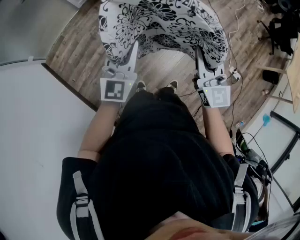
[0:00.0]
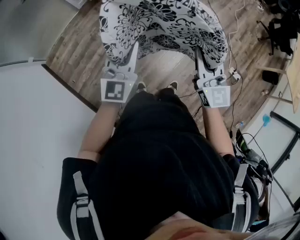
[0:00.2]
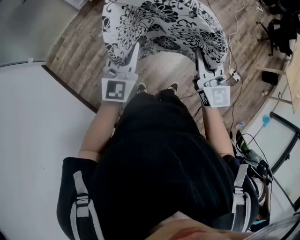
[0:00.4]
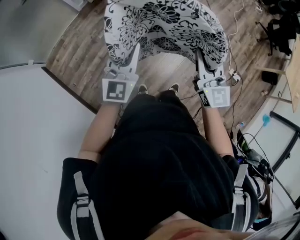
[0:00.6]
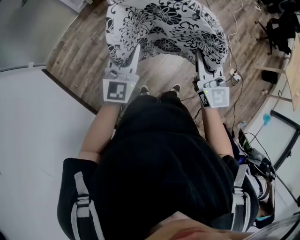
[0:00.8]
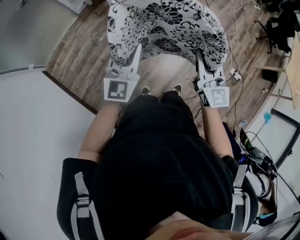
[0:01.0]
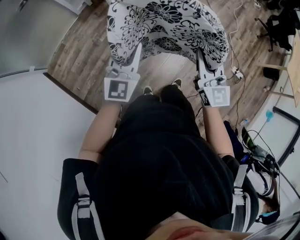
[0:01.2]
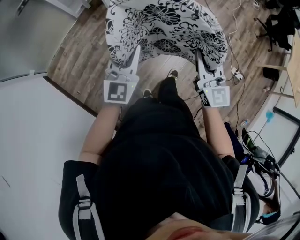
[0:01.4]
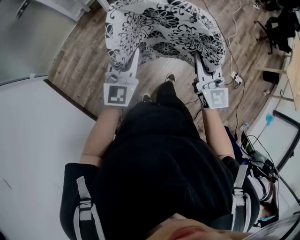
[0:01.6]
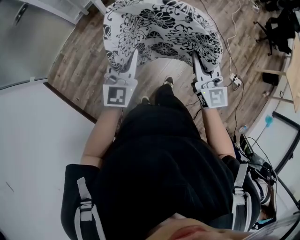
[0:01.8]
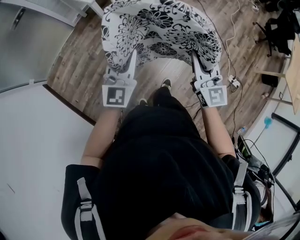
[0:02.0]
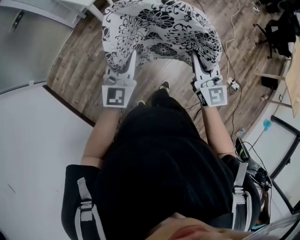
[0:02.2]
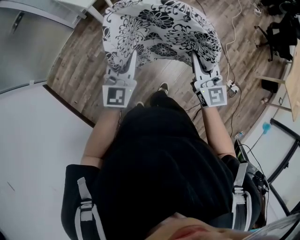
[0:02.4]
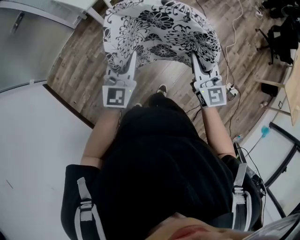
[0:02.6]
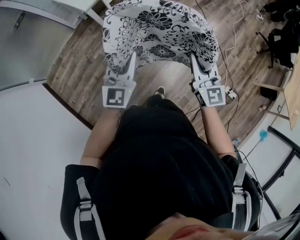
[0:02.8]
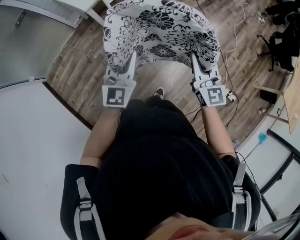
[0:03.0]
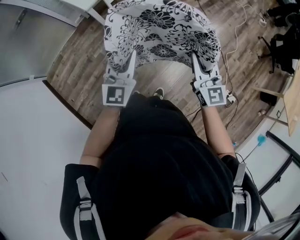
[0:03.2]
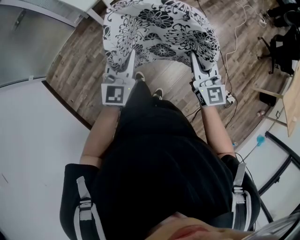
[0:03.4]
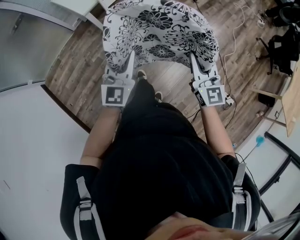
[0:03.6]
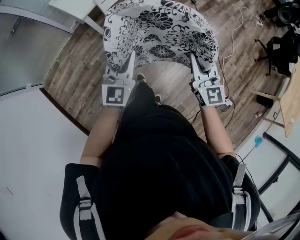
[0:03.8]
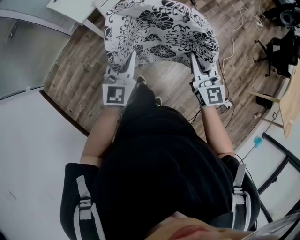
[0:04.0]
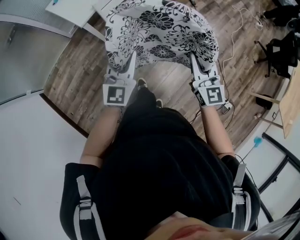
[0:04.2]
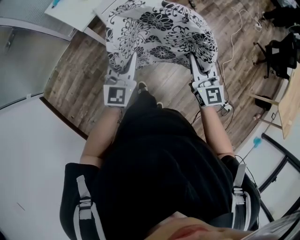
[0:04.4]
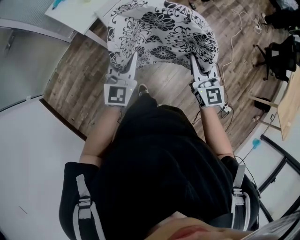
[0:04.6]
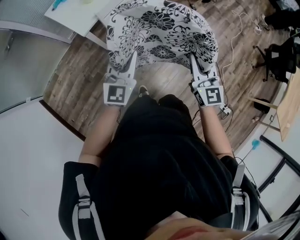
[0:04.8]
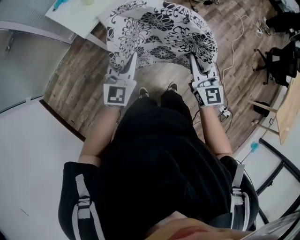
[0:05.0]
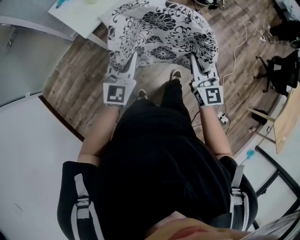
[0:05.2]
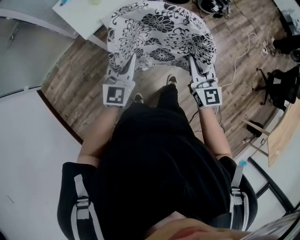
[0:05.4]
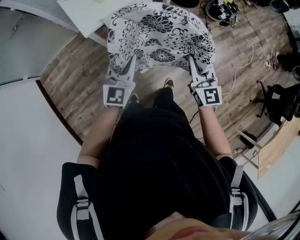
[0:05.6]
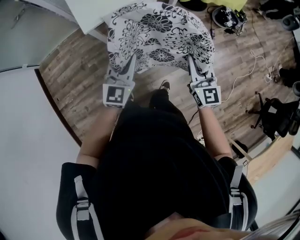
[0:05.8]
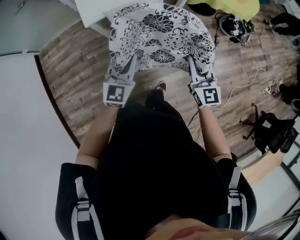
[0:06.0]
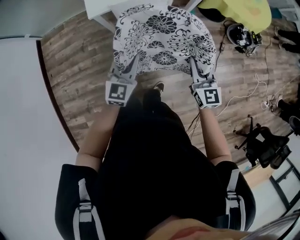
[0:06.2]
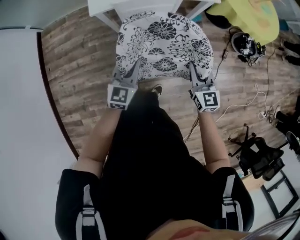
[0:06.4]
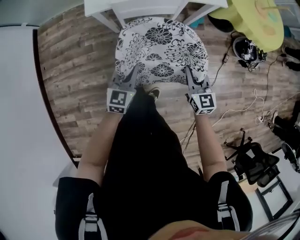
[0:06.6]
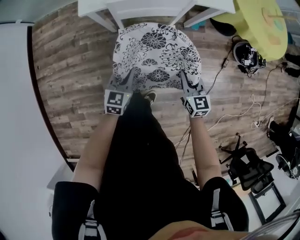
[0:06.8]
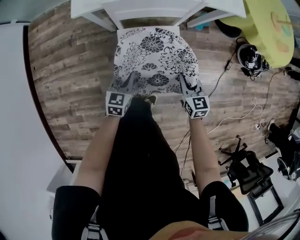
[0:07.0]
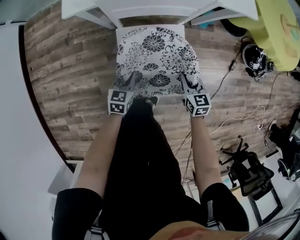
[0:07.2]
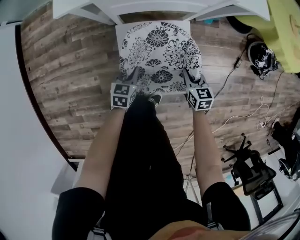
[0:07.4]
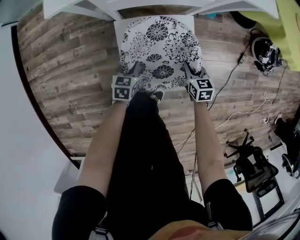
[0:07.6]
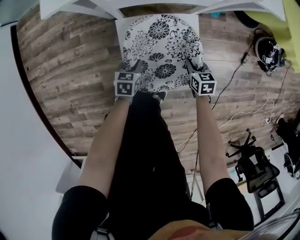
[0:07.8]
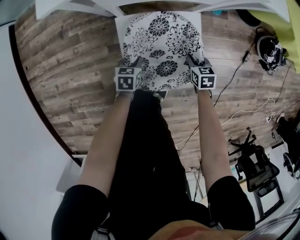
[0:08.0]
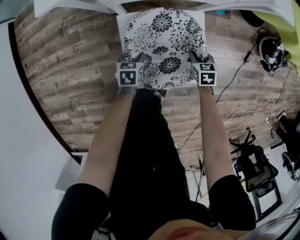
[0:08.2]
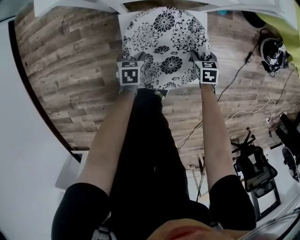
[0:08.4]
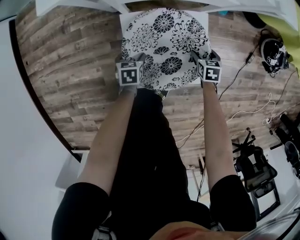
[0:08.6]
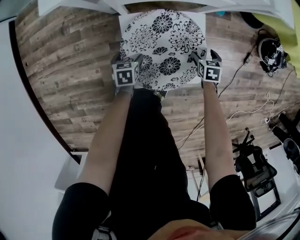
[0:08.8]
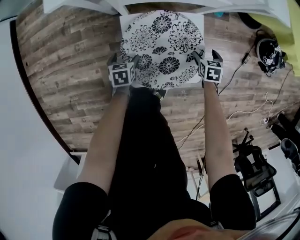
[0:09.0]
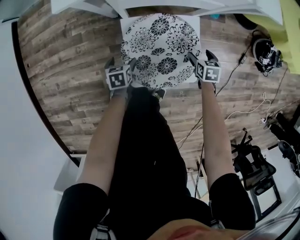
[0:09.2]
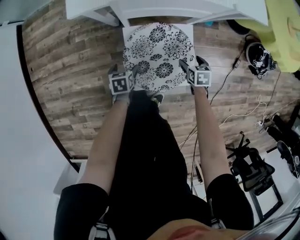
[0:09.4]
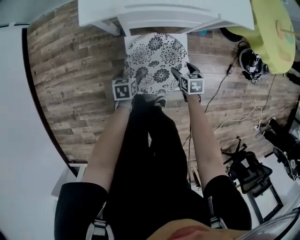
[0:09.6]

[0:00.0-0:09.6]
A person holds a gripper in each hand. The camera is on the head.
0:00.0 to 0:03.2: The grippers move only a little.
0:03.2 to 0:04.8: Neither gripper changes place.
0:04.8 to 0:06.4: Both grippers travel together downward, roughly 10 cm.
0:06.4 to 0:08.0: The two grippers go approximately 50 cm downward. The right gripper points its fingers about 40 degrees further downward. The left gripper tilts its fingers approximately 40 degrees downward.
0:08.0 to 0:09.6: The grippers both shift upward by roughly 15 cm. The left gripper opens up. Meanwhile the right gripper opens its fingers.

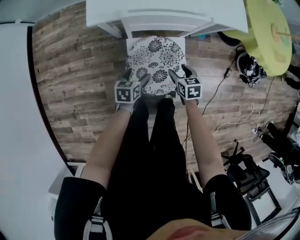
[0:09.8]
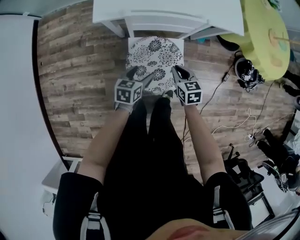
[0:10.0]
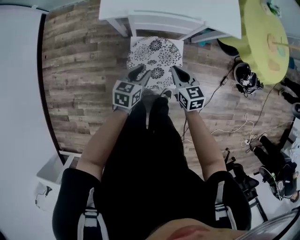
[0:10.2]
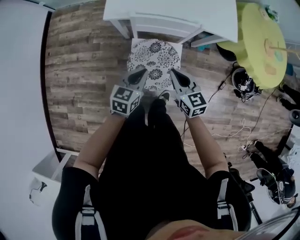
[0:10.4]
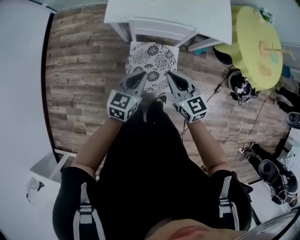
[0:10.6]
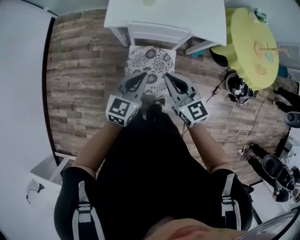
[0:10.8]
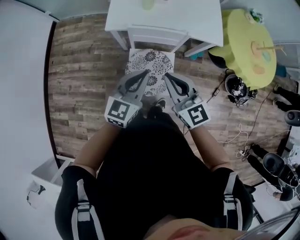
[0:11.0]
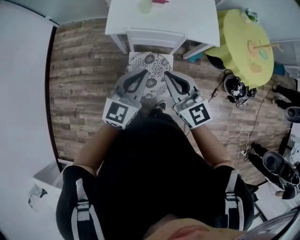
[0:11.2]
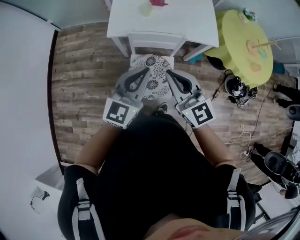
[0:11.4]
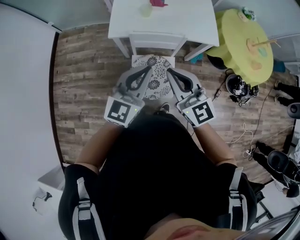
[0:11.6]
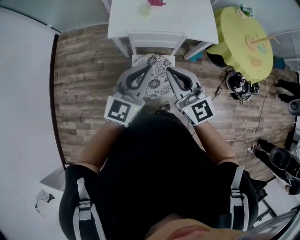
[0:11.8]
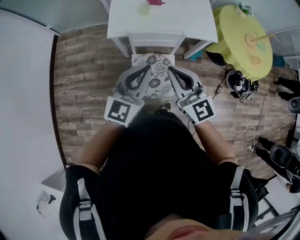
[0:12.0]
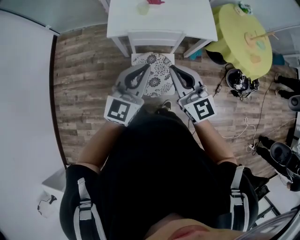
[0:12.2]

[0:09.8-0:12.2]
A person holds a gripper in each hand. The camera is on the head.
0:09.8 to 0:11.0: Both grippers move upward, some 40 cm. The right gripper angles its fingers upward, by about 50 degrees, and closes its fingers; the left gripper angles its fingers upward, by roughly 30 degrees, and closes up.
0:11.0 to 0:12.2: The left gripper is displaced upward by approximately 10 cm, while the right gripper heads upward, covering approximately 5 cm.

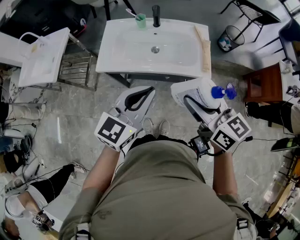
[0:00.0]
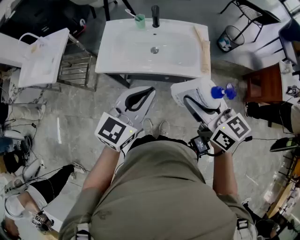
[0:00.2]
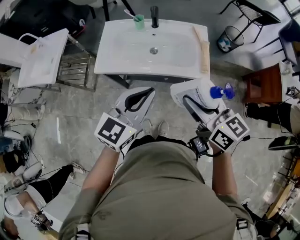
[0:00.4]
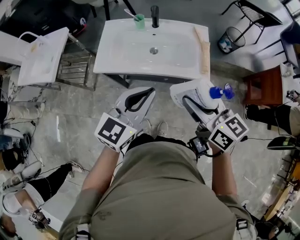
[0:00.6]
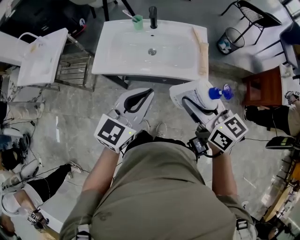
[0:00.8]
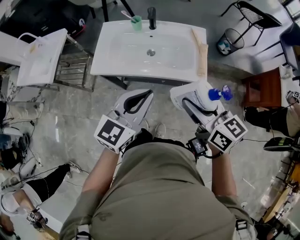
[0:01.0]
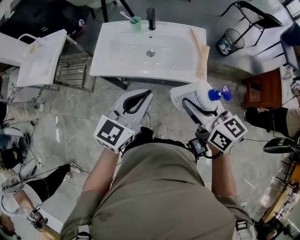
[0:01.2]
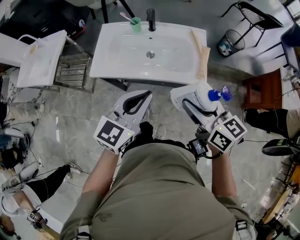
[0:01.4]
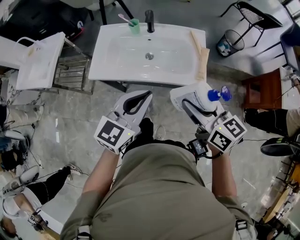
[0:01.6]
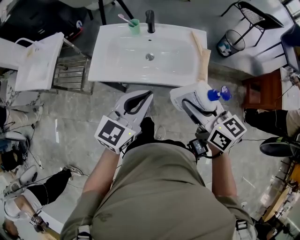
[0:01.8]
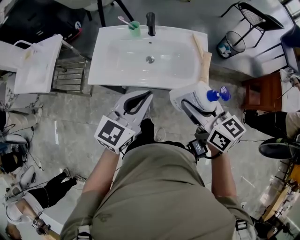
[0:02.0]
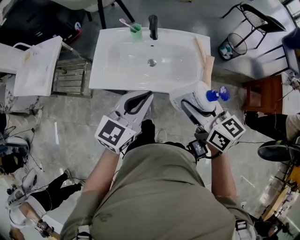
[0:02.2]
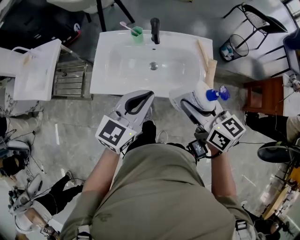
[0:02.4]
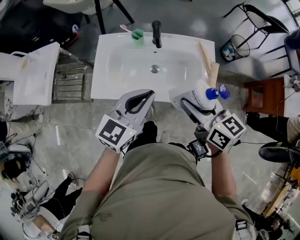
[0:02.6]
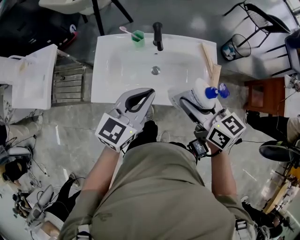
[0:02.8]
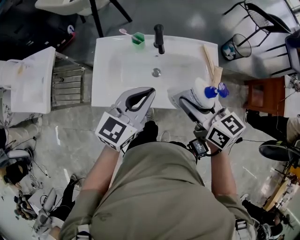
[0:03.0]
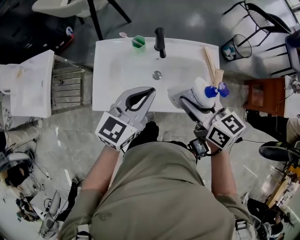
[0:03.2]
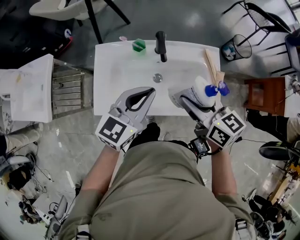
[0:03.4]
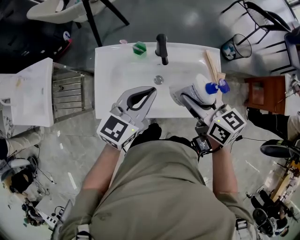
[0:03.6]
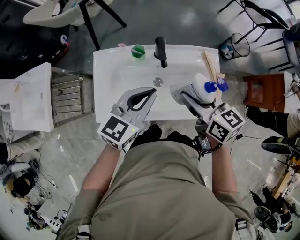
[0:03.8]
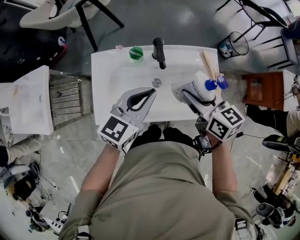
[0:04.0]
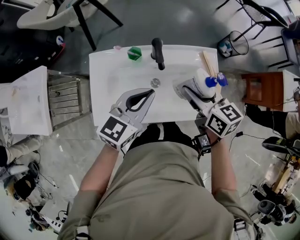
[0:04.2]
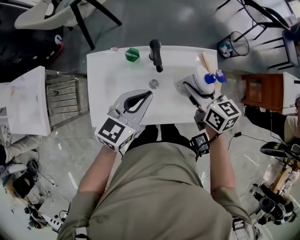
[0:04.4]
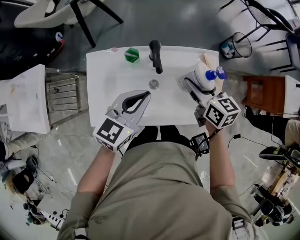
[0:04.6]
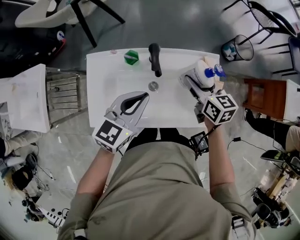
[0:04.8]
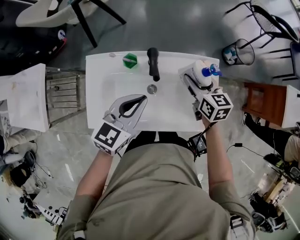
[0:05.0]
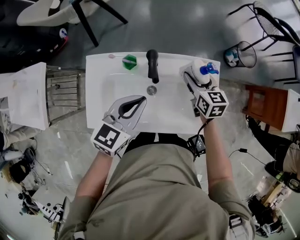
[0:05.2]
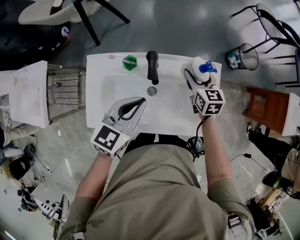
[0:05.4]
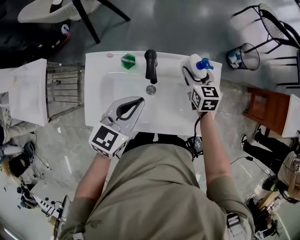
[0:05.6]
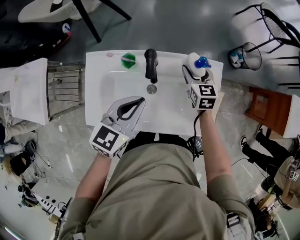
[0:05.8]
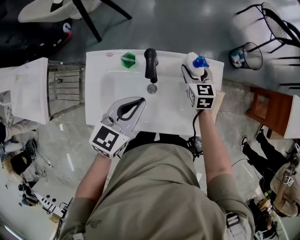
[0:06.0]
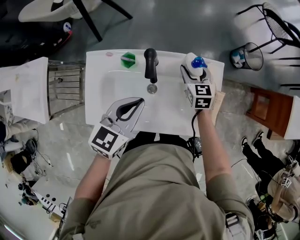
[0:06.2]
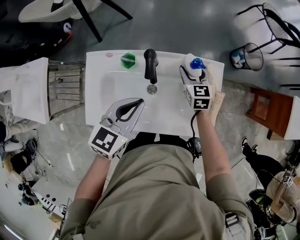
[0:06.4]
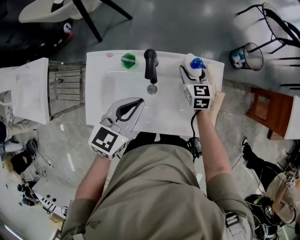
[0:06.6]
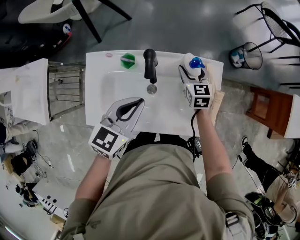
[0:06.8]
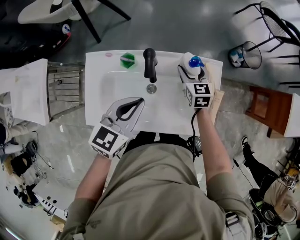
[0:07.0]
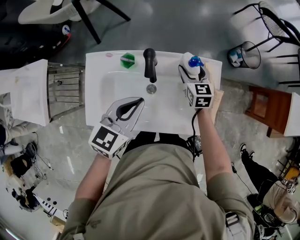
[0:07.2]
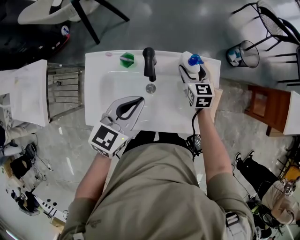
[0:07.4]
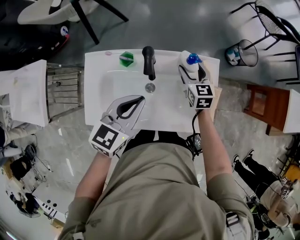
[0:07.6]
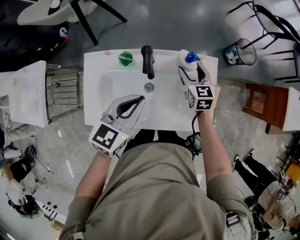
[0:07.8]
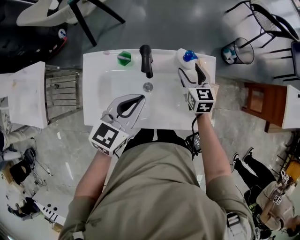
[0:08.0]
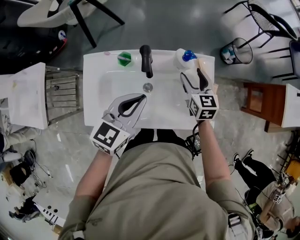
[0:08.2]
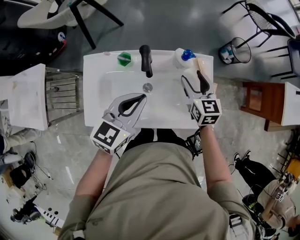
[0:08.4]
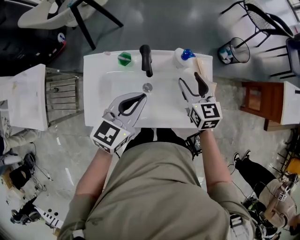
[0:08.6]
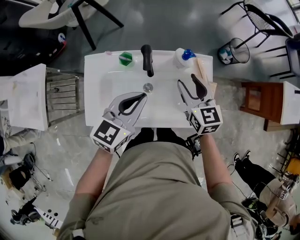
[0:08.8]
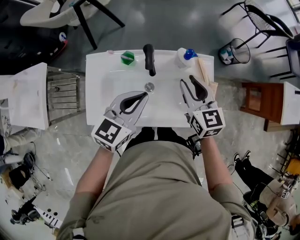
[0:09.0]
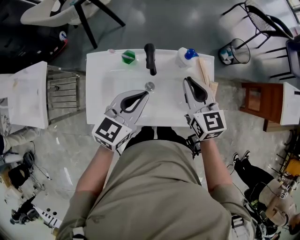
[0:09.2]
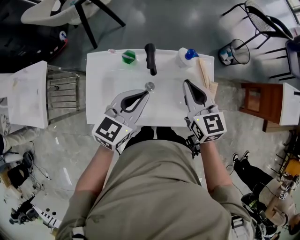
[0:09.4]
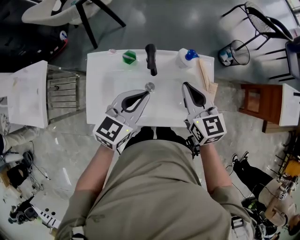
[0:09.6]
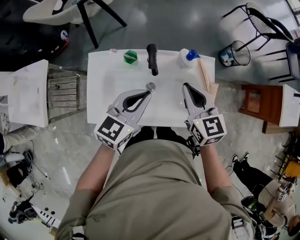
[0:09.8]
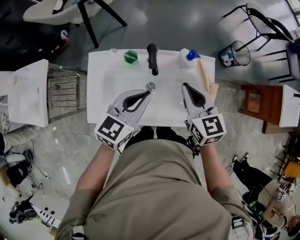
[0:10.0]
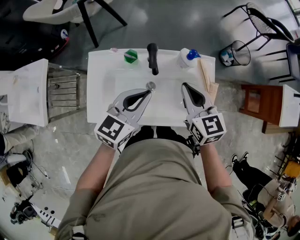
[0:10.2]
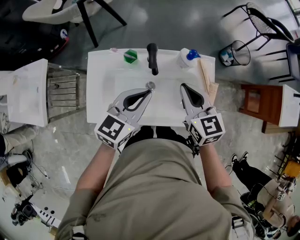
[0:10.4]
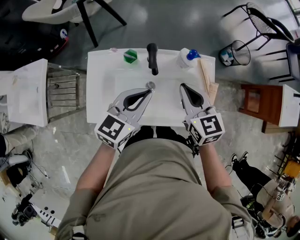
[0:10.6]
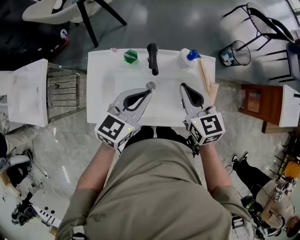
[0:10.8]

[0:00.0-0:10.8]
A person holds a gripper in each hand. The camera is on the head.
0:00.0 to 0:01.6: The left gripper ends up about 5 cm from where it was. The right gripper ends up some 10 cm from where it was.
0:01.6 to 0:03.0: The left gripper moves forward, approximately 20 cm. The right gripper travels forward and to the left by approximately 20 cm.
0:03.0 to 0:04.6: The right gripper is displaced forward and downward by about 20 cm. The left gripper heads forward, covering some 10 cm.
0:04.6 to 0:06.2: The right gripper is displaced downward and forward by some 15 cm, and turns by approximately 20 degrees.
0:06.2 to 0:07.8: The grippers move only a little.
0:07.8 to 0:09.2: The right gripper travels upward and backward by approximately 20 cm, and closes up.
0:09.2 to 0:10.8: There are only small adjustments of the grippers.

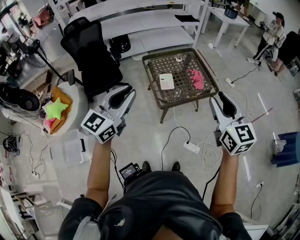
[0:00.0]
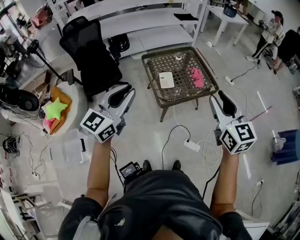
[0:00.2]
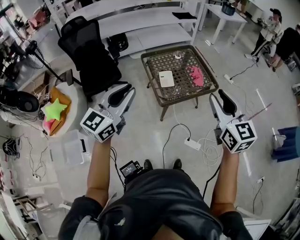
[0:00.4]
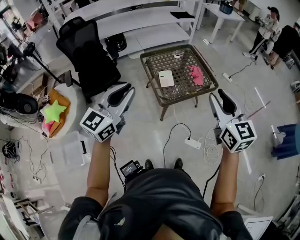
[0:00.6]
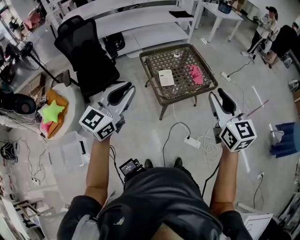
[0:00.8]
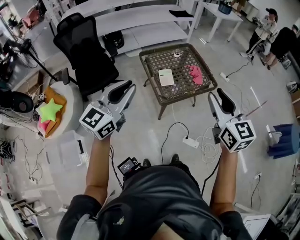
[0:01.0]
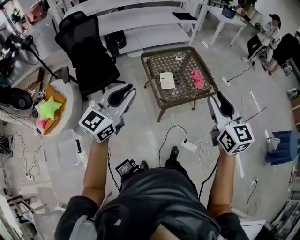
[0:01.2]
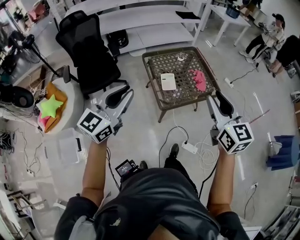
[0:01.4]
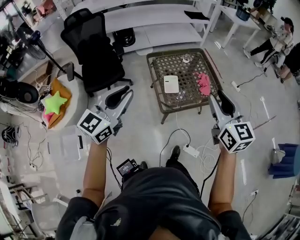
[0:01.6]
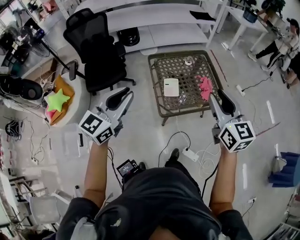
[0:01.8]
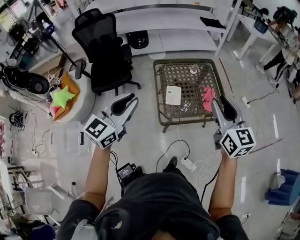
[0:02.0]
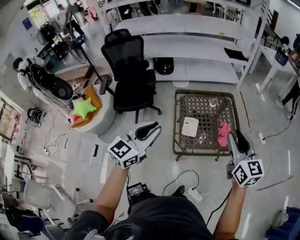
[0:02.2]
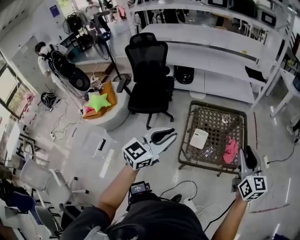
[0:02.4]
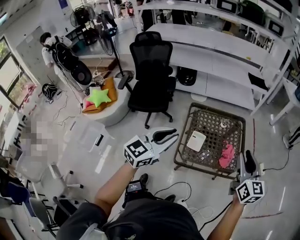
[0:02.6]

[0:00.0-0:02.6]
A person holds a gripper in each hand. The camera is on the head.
0:00.0 to 0:01.2: Both grippers travel together to the left, roughly 5 cm.
0:01.2 to 0:02.6: Both grippers travel together forward and to the right, about 25 cm. The left gripper rotates about 20 degrees.
